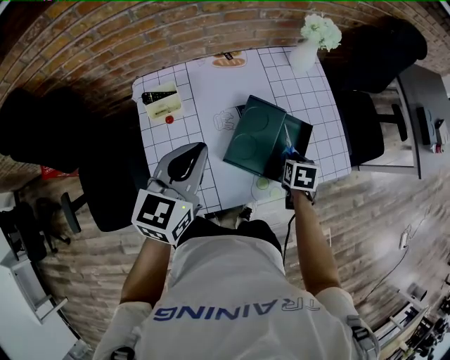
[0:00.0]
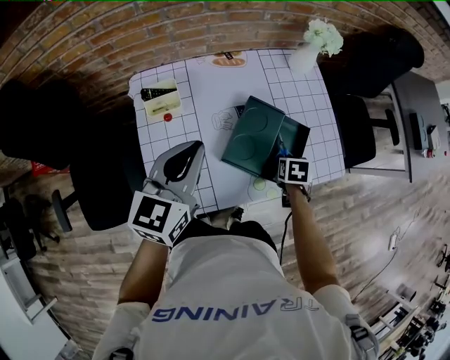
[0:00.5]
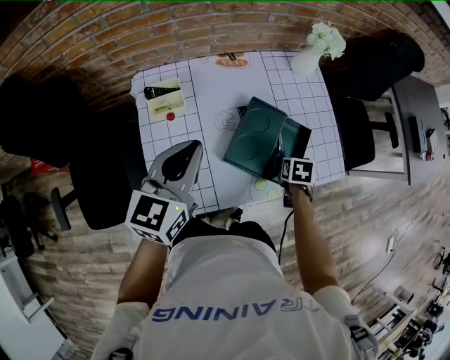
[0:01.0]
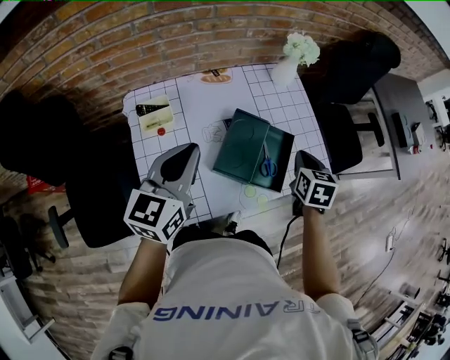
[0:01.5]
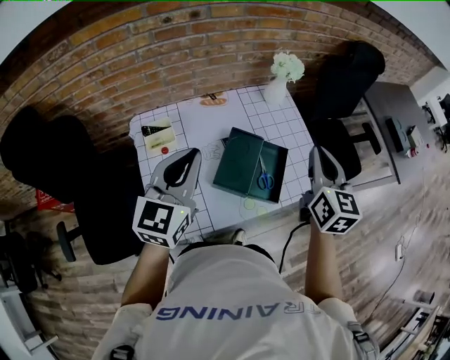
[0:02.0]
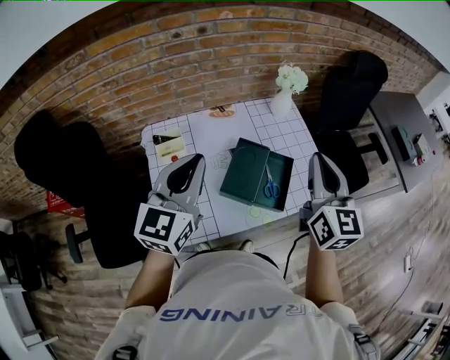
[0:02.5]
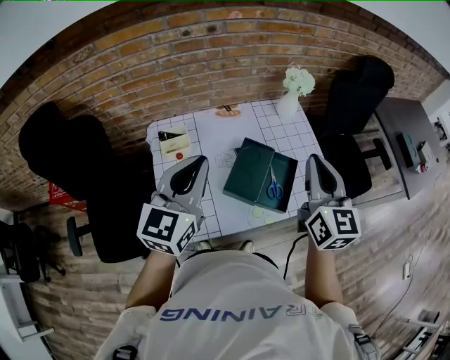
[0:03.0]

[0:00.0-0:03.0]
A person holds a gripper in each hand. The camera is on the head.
0:00.0 to 0:01.5: The right gripper travels upward by roughly 15 cm, and closes its fingers.
0:01.5 to 0:03.0: The right gripper is displaced upward by roughly 20 cm, and tips its fingers upward by some 40 degrees. The left gripper goes about 10 cm upward.

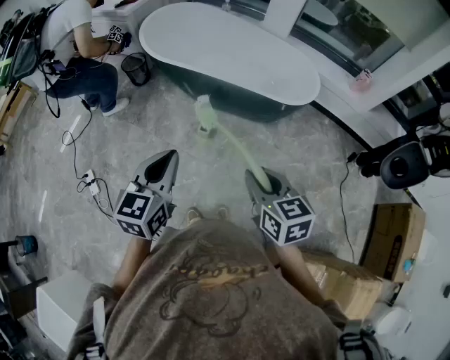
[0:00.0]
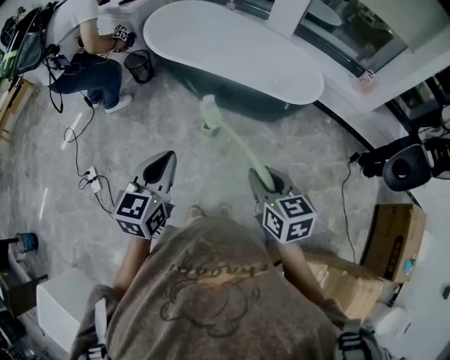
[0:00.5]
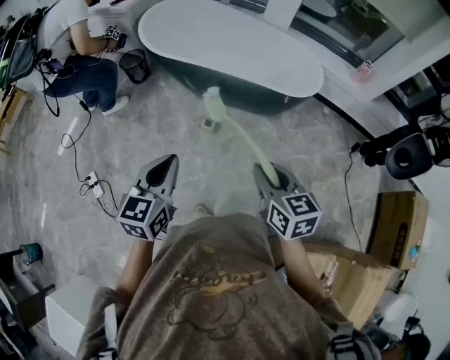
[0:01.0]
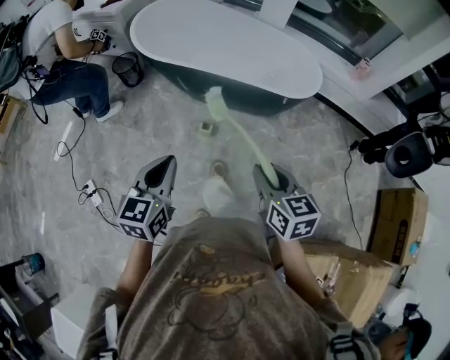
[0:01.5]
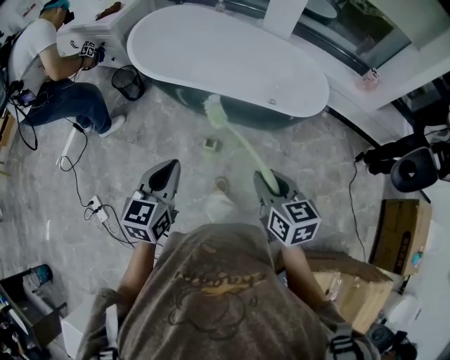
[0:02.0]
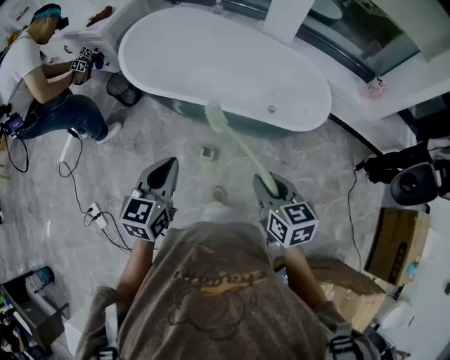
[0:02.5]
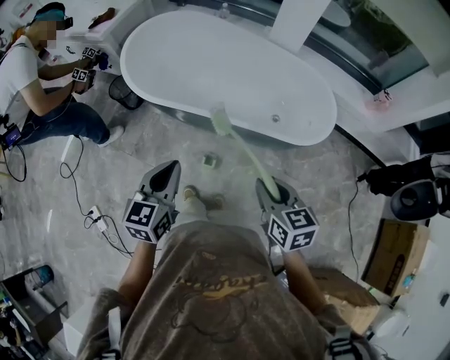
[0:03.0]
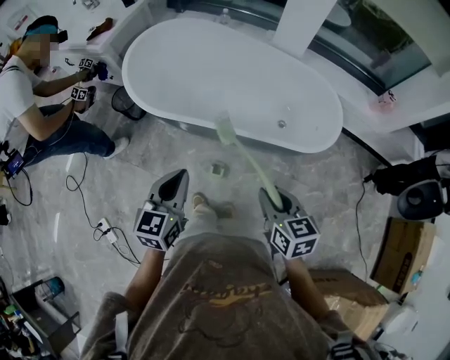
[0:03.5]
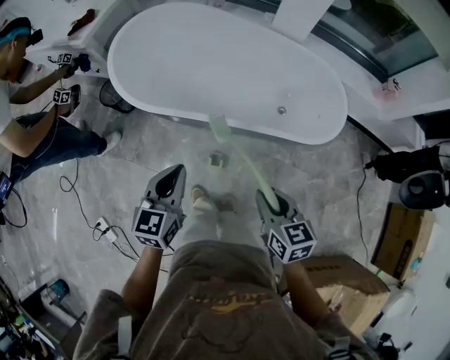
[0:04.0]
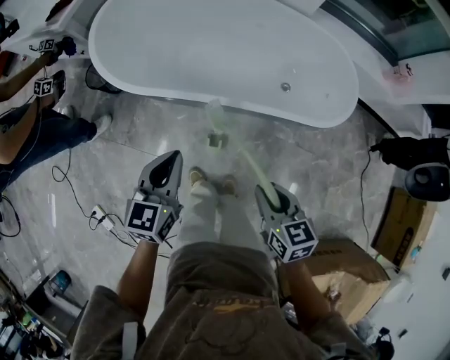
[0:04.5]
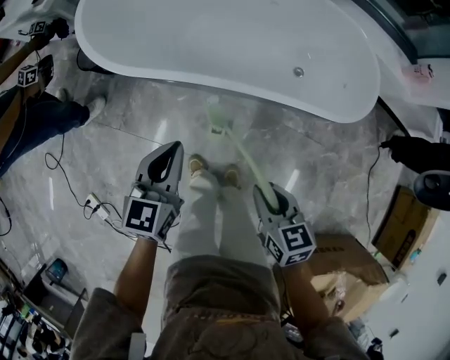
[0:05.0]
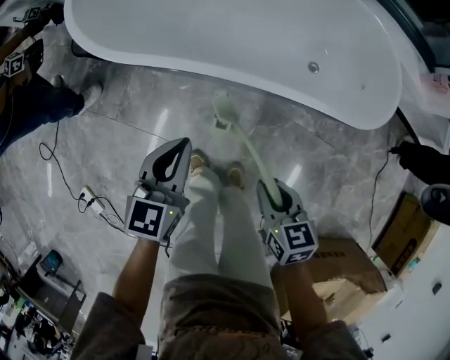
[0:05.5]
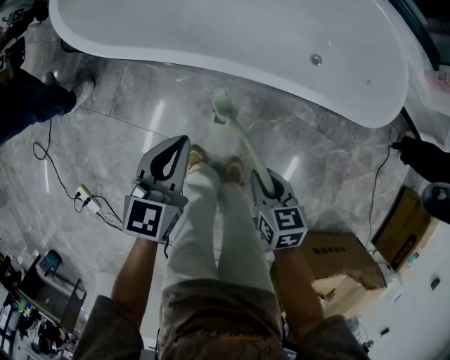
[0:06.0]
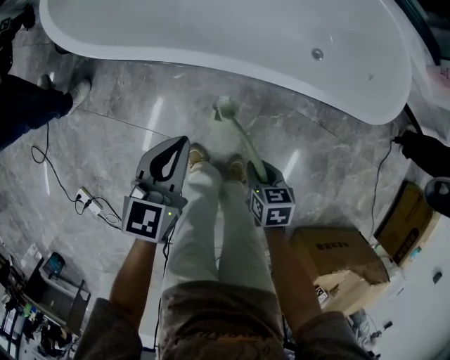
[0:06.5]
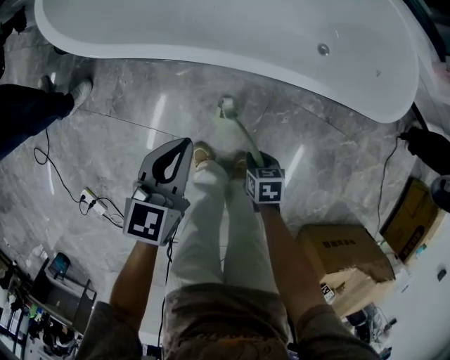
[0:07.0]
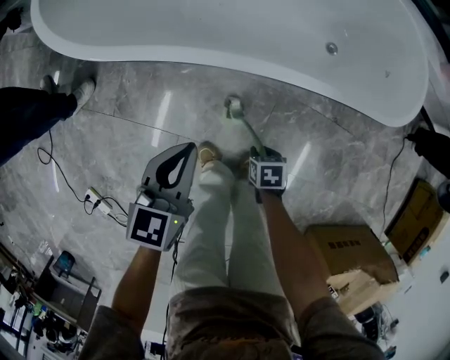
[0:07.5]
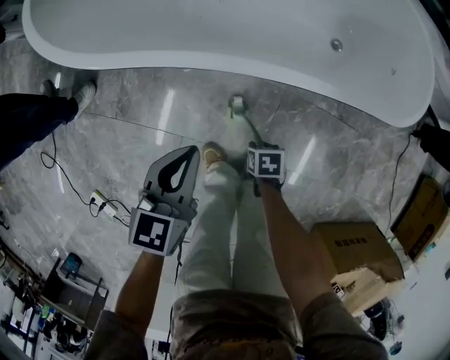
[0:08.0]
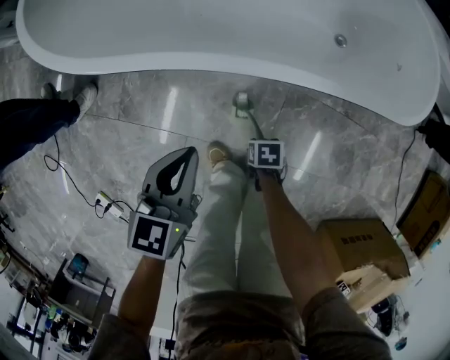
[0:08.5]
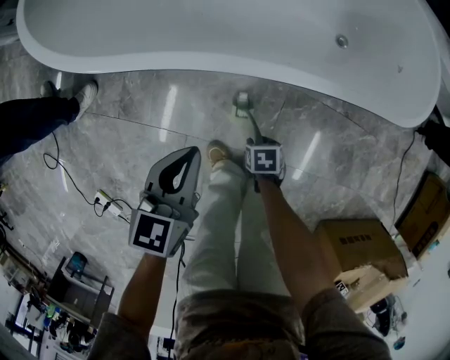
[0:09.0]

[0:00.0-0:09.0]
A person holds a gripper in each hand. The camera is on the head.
0:00.0 to 0:02.0: The right gripper shifts some 15 cm forward. The left gripper goes some 20 cm forward and downward.
0:02.0 to 0:04.5: Both grippers move forward and downward, roughly 25 cm.
0:04.5 to 0:07.0: The right gripper travels downward by approximately 40 cm, and turns by some 30 degrees. The left gripper is displaced downward by some 20 cm.
0:07.0 to 0:09.0: The right gripper moves downward, approximately 10 cm. The left gripper moves approximately 5 cm.

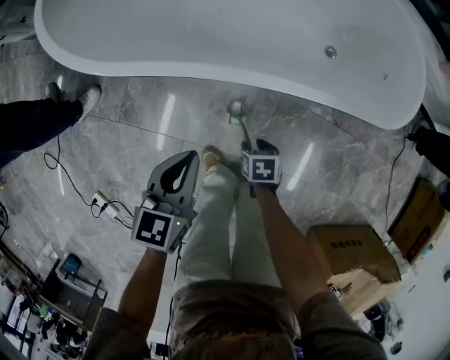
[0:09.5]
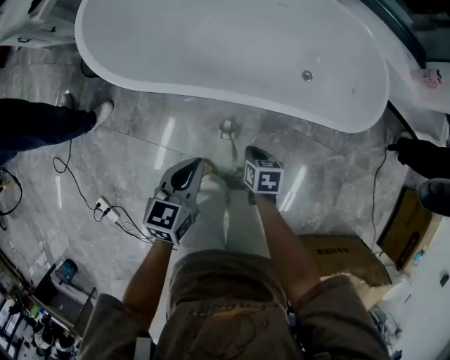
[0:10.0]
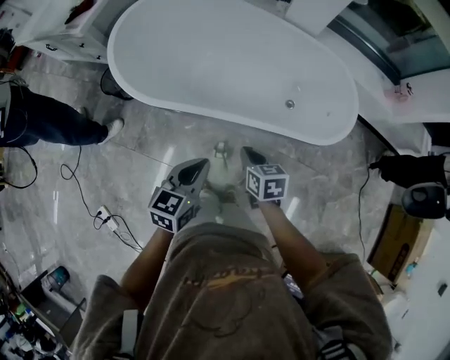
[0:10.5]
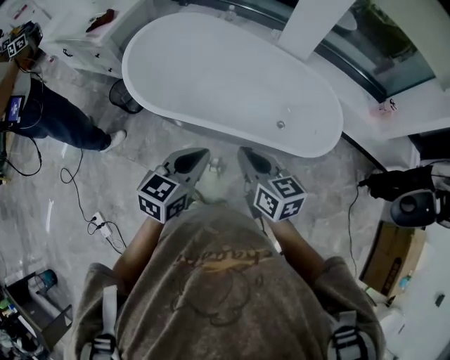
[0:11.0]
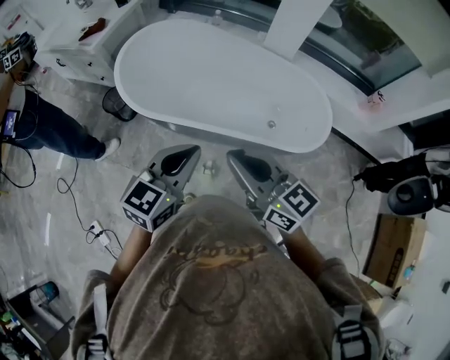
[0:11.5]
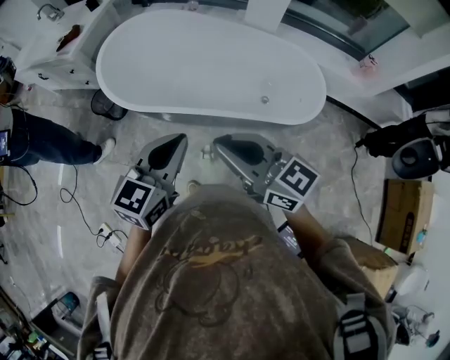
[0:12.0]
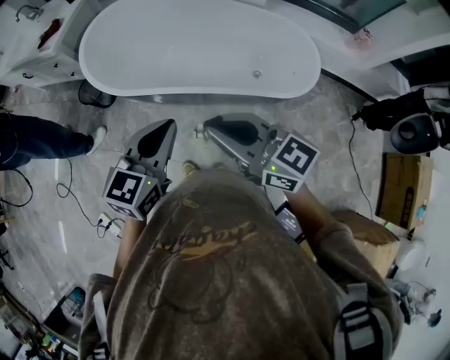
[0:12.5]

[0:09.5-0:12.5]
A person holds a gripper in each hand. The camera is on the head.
0:09.5 to 0:11.0: The left gripper is displaced upward by about 35 cm, while the right gripper is displaced upward by roughly 60 cm, tips its fingers upward by roughly 50 degrees, and closes its fingers.
0:11.0 to 0:12.5: The left gripper moves roughly 5 cm. The right gripper travels upward and backward by approximately 10 cm, and rotates some 30 degrees.

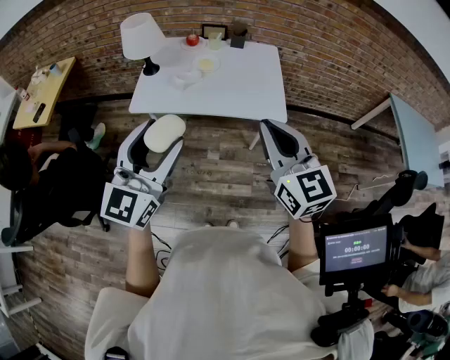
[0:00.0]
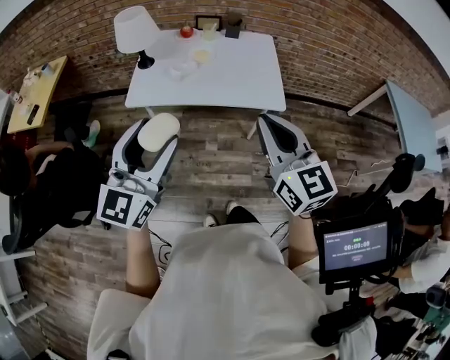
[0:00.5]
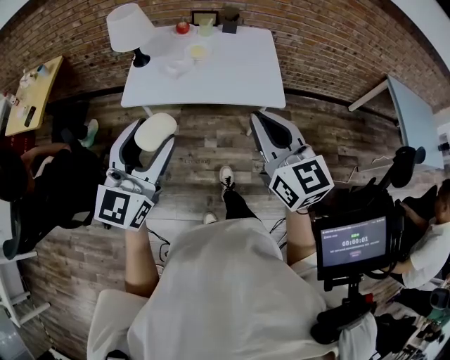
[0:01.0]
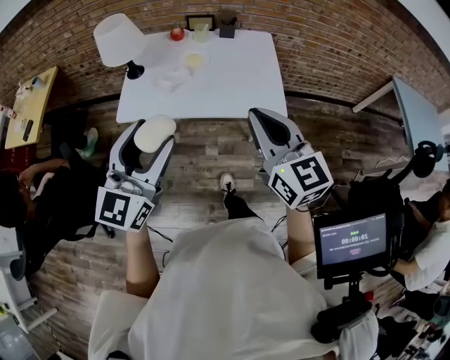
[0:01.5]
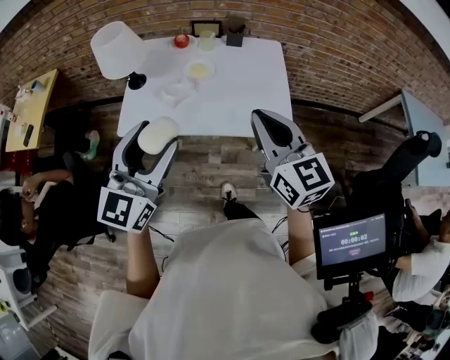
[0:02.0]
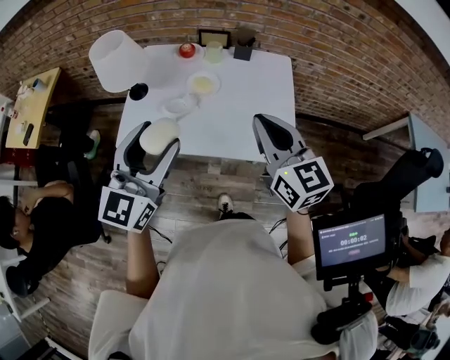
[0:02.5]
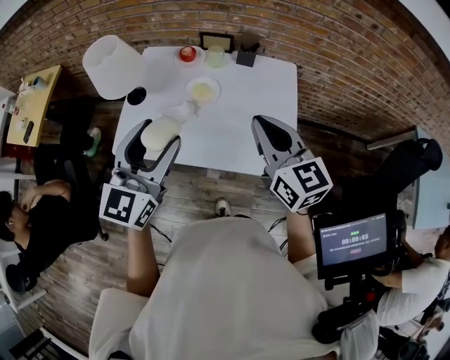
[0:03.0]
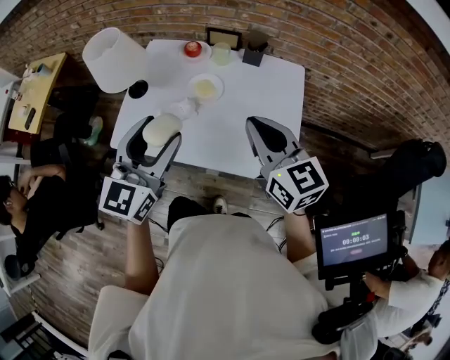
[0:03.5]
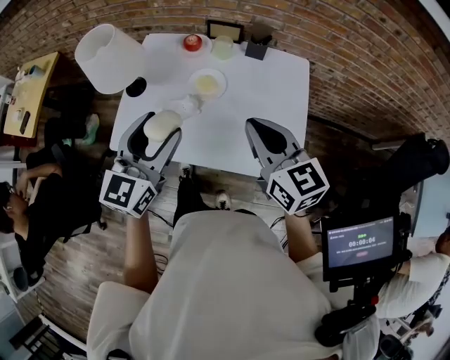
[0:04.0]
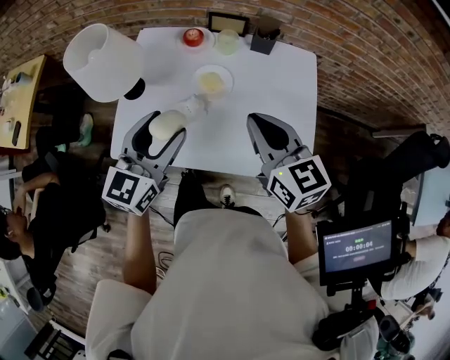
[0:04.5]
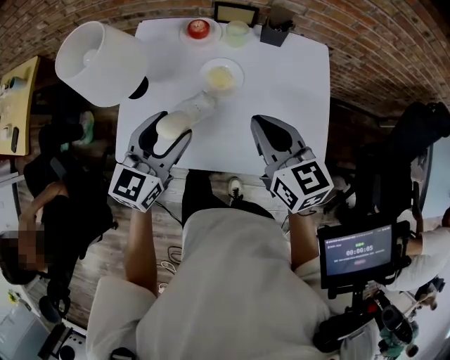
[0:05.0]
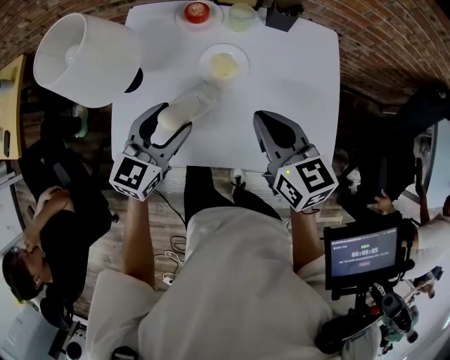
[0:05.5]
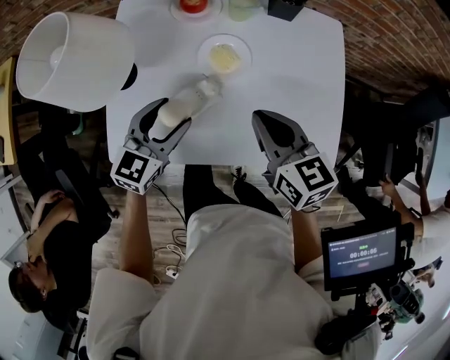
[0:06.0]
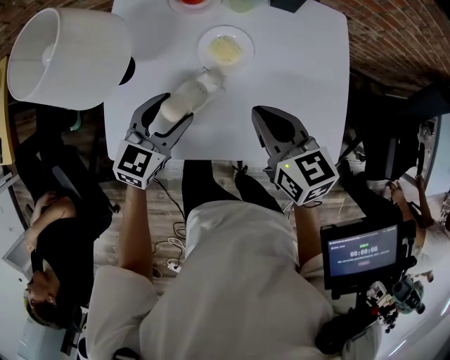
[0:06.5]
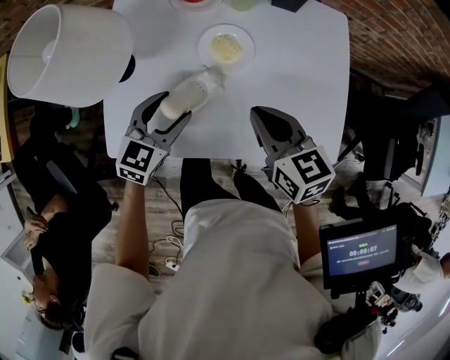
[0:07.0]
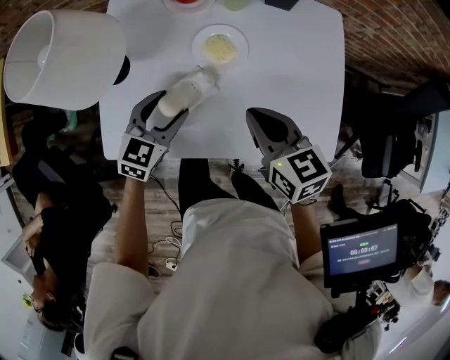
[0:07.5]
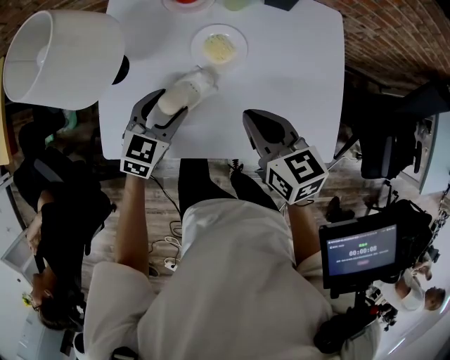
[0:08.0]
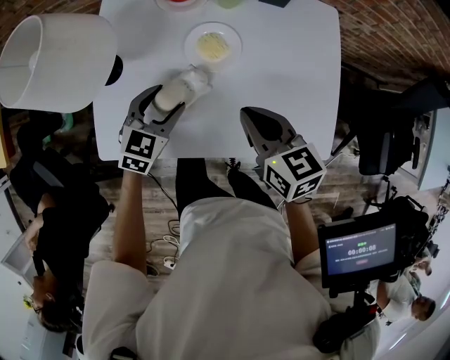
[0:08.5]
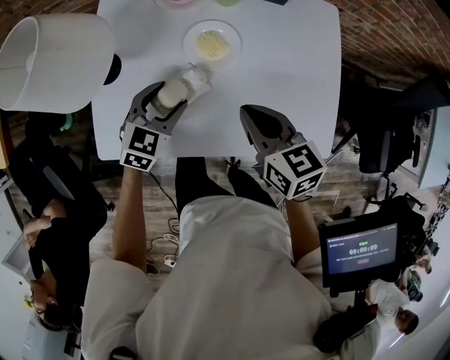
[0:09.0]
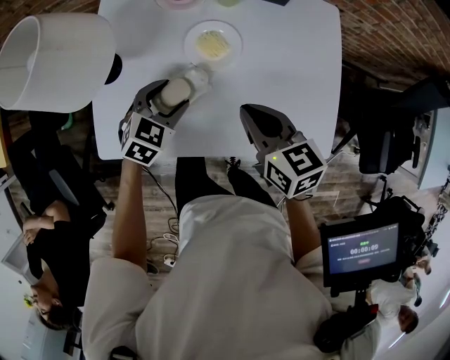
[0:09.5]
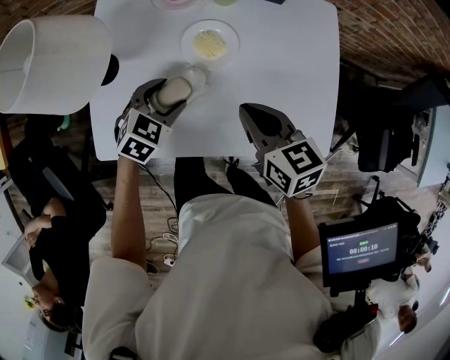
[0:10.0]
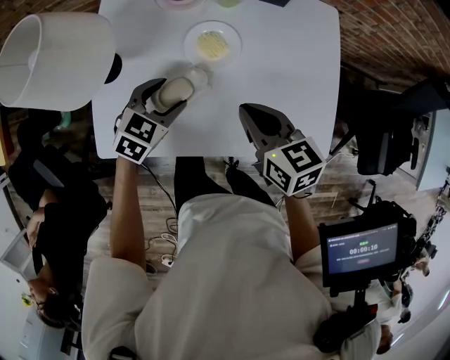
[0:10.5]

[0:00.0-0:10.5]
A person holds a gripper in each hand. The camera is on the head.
0:00.0 to 0:02.0: The grippers both shift forward by roughly 20 cm.
0:02.0 to 0:04.0: The two grippers go roughly 20 cm forward.
0:04.0 to 0:06.5: The left gripper goes some 15 cm downward, and changes its angle by about 30 degrees. The right gripper is displaced downward and to the left by approximately 15 cm.
0:06.5 to 0:08.5: The left gripper shifts roughly 5 cm downward.
0:08.5 to 0:10.5: The grippers move only a little.

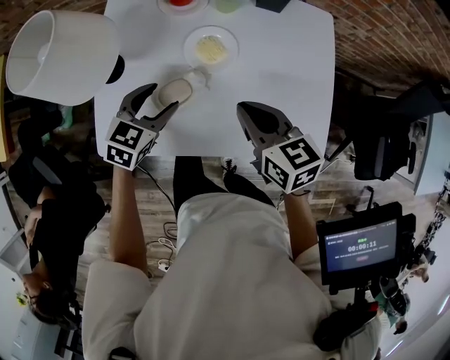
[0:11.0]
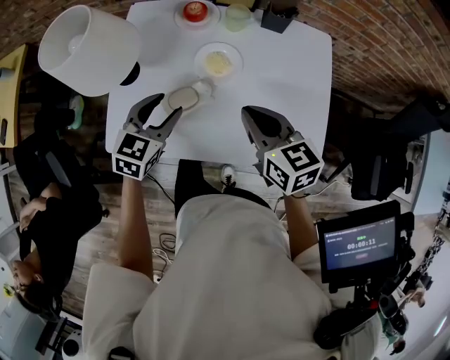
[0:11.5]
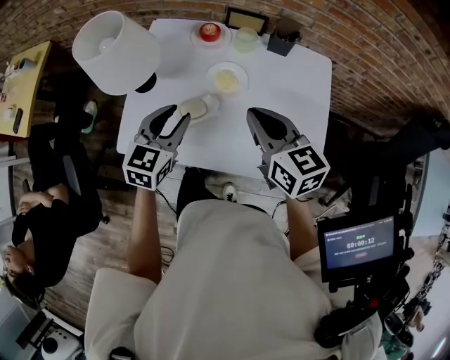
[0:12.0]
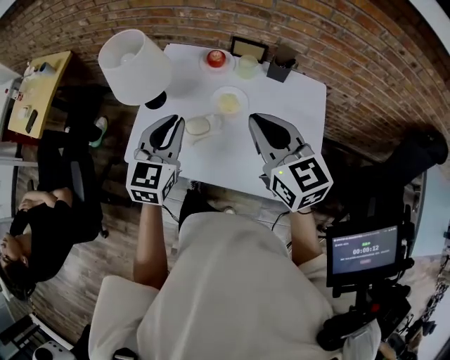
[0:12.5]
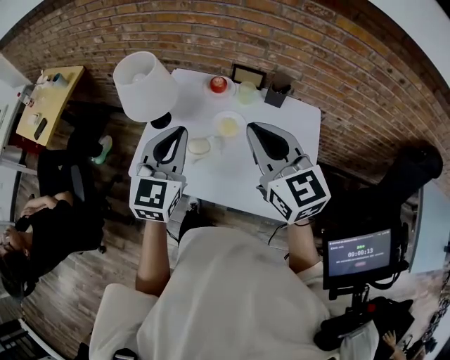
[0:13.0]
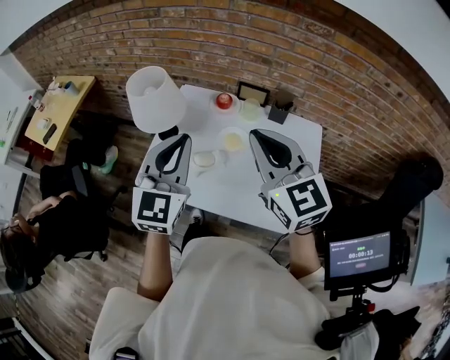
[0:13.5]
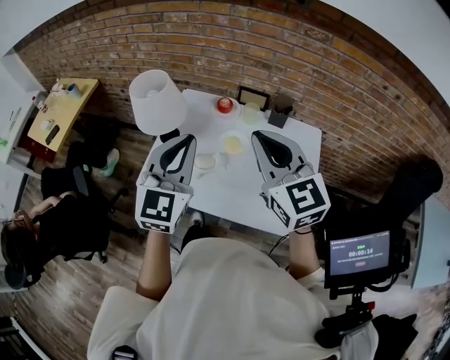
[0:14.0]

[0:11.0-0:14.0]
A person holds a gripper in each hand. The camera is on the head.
0:11.0 to 0:12.5: Both grippers move upward, roughly 15 cm. The left gripper changes its angle by some 40 degrees, and closes. The right gripper rotates about 30 degrees.
0:12.5 to 0:14.0: The left gripper goes roughly 15 cm upward and backward; the right gripper moves upward, about 10 cm.
